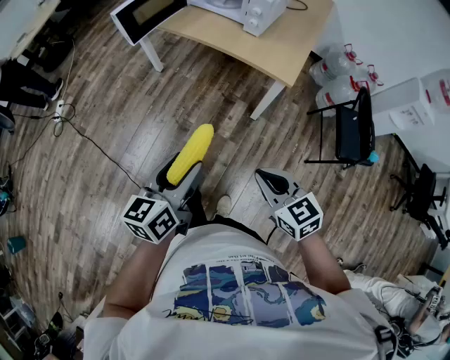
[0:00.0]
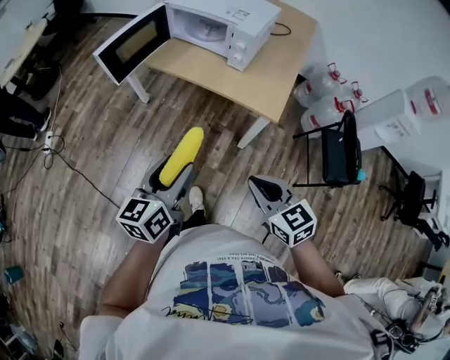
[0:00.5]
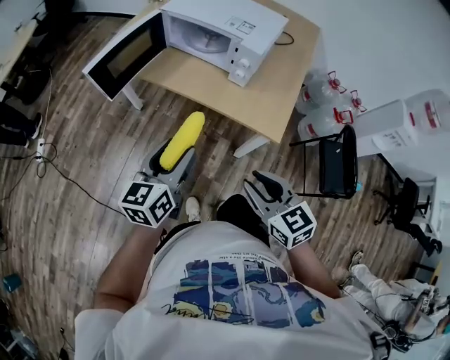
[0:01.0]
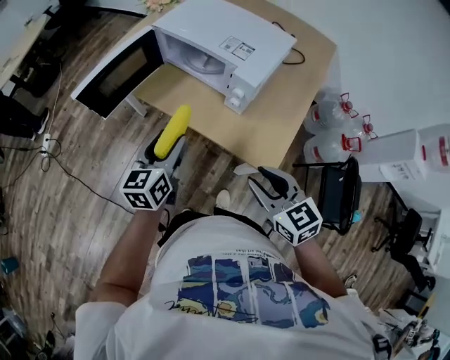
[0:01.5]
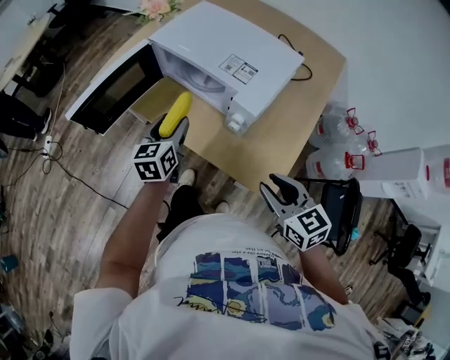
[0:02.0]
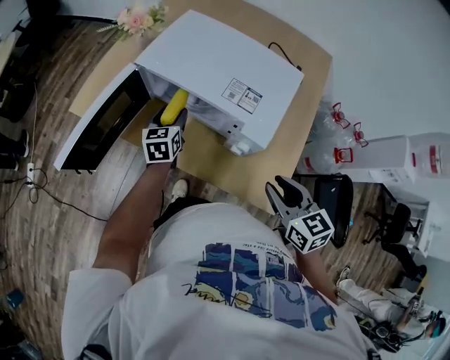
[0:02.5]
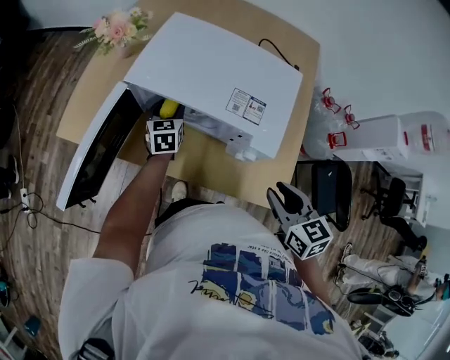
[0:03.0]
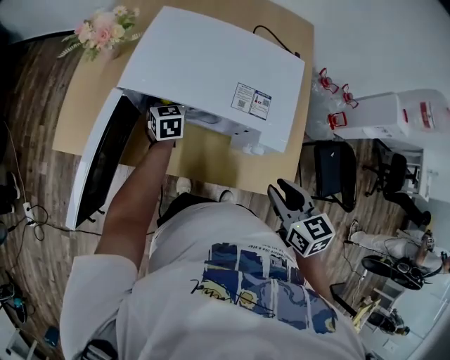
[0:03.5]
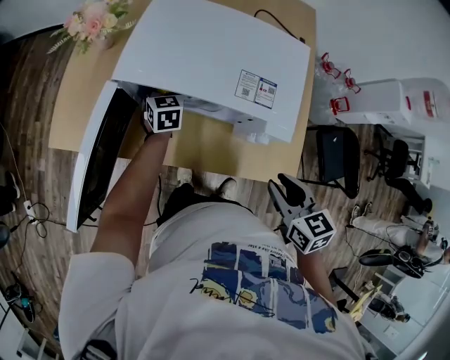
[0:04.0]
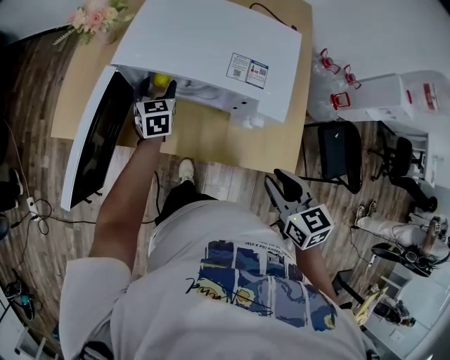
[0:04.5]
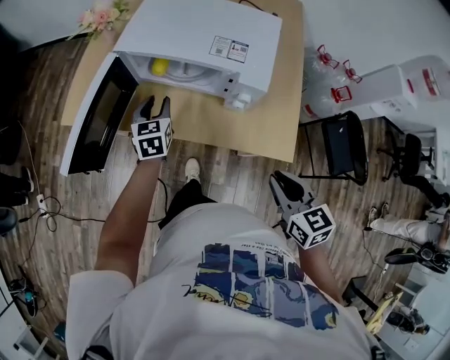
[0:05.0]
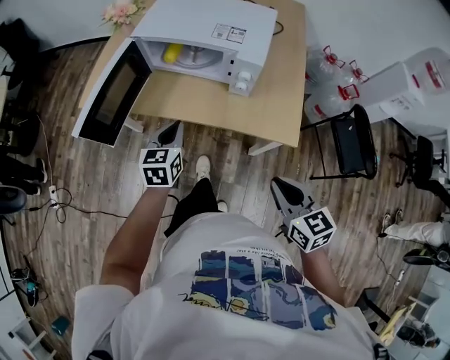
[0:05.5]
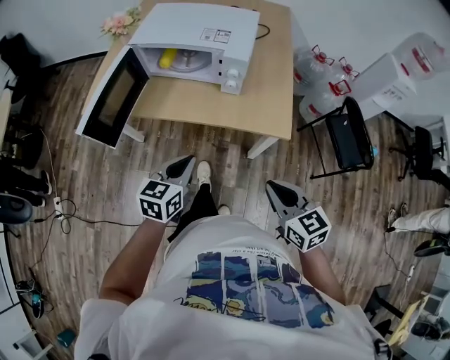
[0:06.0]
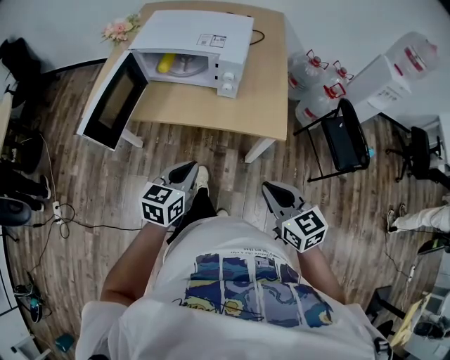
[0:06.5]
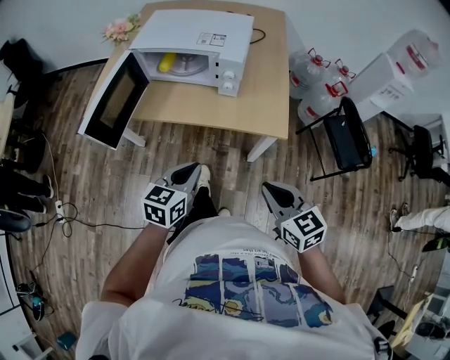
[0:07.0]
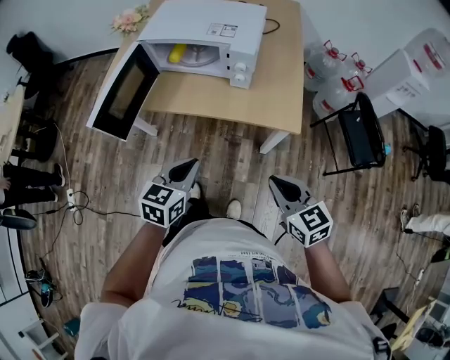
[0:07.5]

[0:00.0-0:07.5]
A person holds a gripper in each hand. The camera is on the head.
0:00.0 to 0:02.0: Both grippers are carried forward, about 50 cm. The left gripper rotates some 20 degrees. The right gripper opens its fingers.
0:02.0 to 0:04.0: The right gripper goes roughly 10 cm to the left and forward, and changes its angle by some 30 degrees. The left gripper shifts some 30 cm forward and downward, and changes its angle by roughly 30 degrees.
0:04.0 to 0:05.5: The left gripper moves backward, some 35 cm, and closes its fingers. The right gripper shifts roughly 25 cm backward.
0:05.5 to 0:07.5: The right gripper travels backward by roughly 5 cm, while the left gripper is displaced backward by roughly 15 cm.

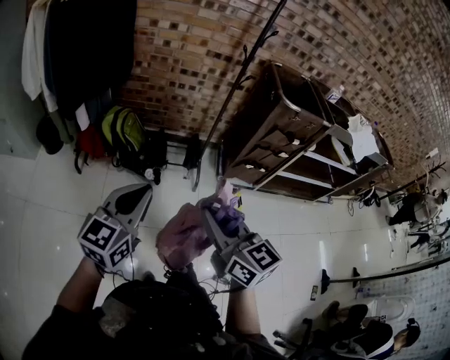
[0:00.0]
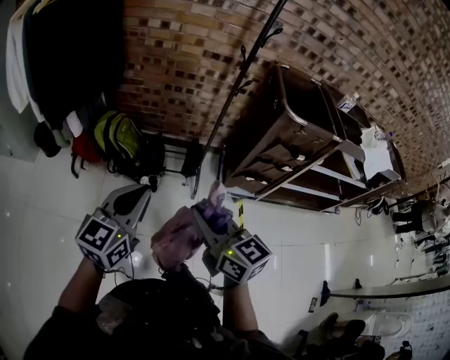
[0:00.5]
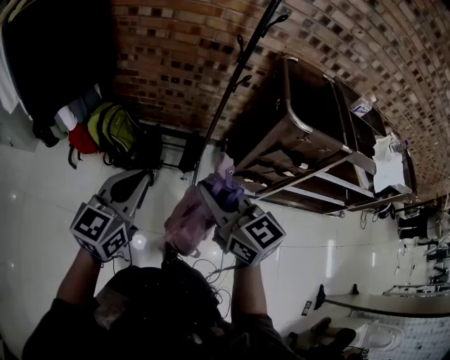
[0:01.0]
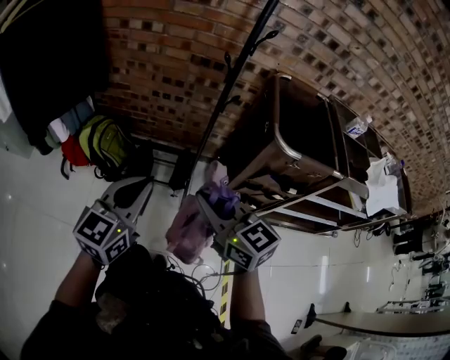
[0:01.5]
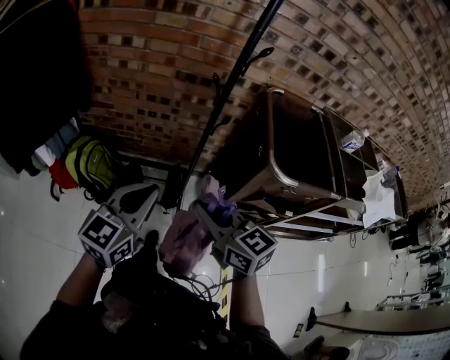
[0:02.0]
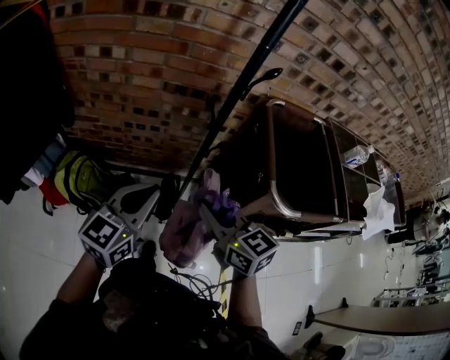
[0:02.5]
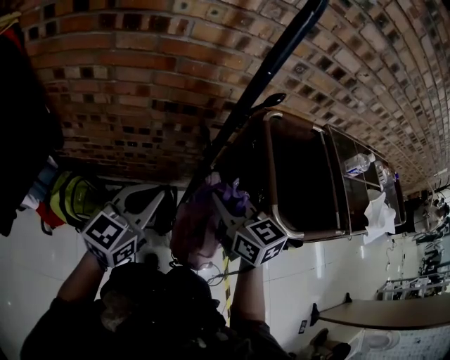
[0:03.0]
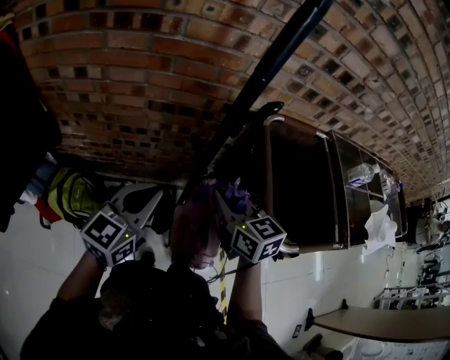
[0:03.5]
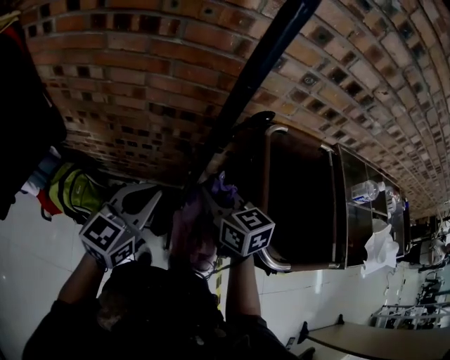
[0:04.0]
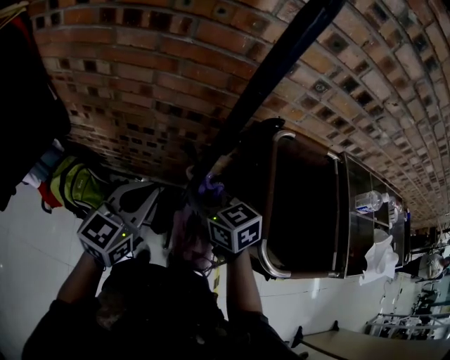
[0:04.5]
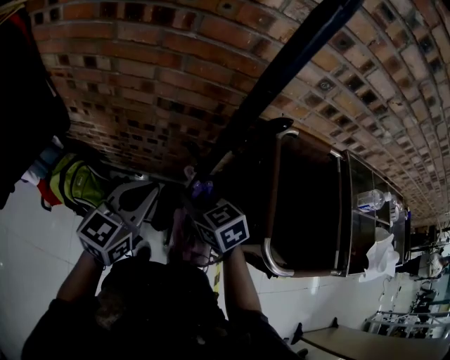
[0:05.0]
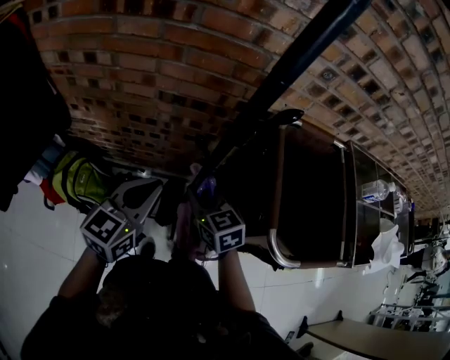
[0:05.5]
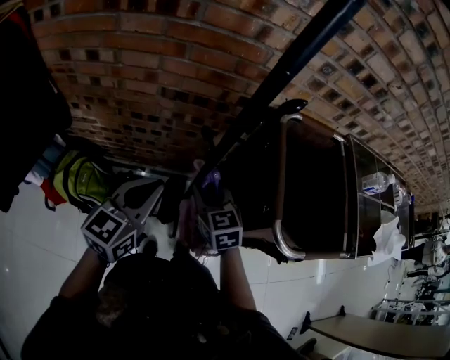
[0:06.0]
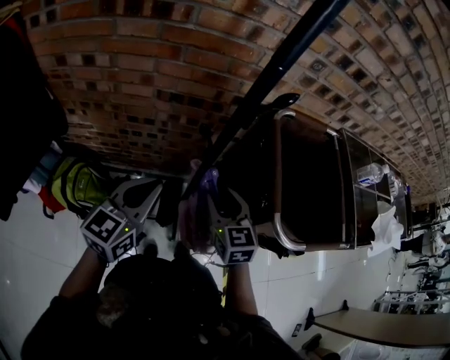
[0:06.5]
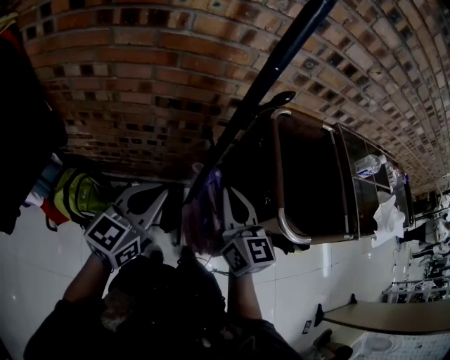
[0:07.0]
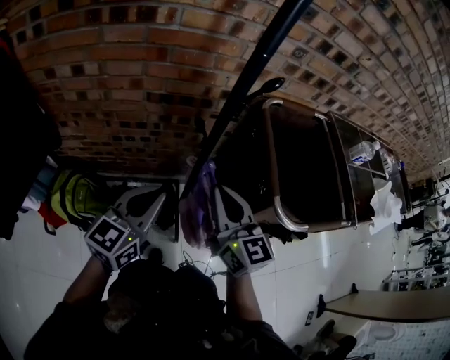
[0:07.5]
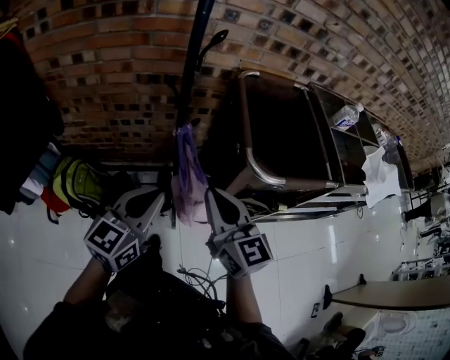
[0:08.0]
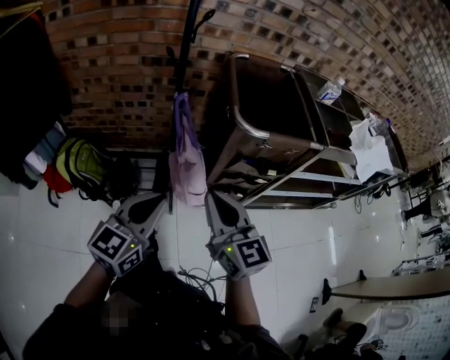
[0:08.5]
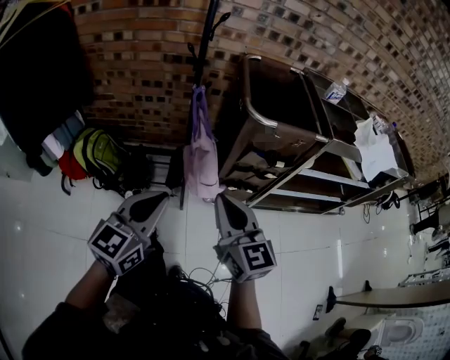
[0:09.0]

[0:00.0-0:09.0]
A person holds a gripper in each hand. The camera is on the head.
0:00.0 to 0:02.0: Both grippers are carried forward and to the right, about 50 cm.
0:02.0 to 0:04.5: The two grippers go roughly 30 cm forward.
0:04.5 to 0:07.0: The right gripper travels backward and upward by some 10 cm, changes its angle by approximately 40 degrees, and opens, then closes again. Meanwhile the left gripper shifts by roughly 5 cm.
0:07.0 to 0:09.0: The two grippers travel together, backward, some 40 cm.

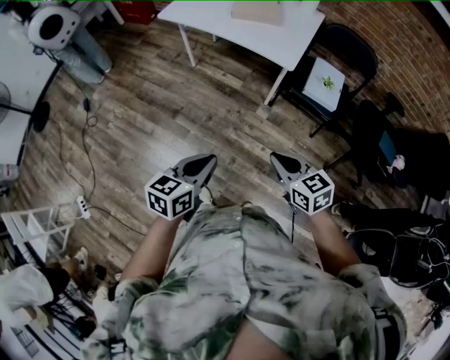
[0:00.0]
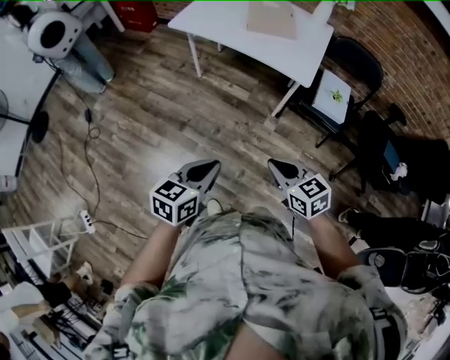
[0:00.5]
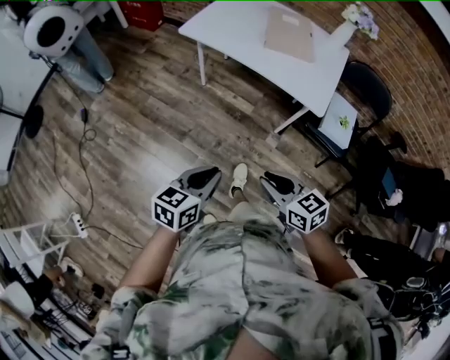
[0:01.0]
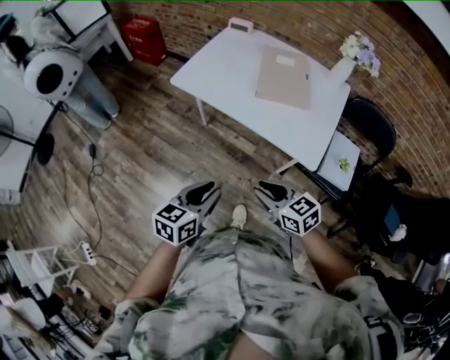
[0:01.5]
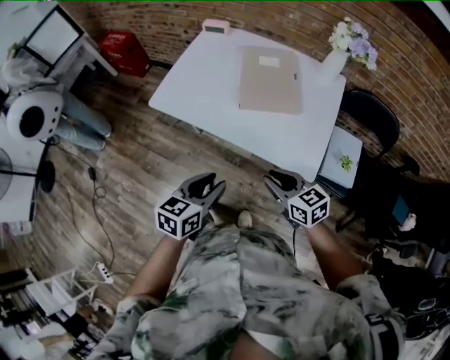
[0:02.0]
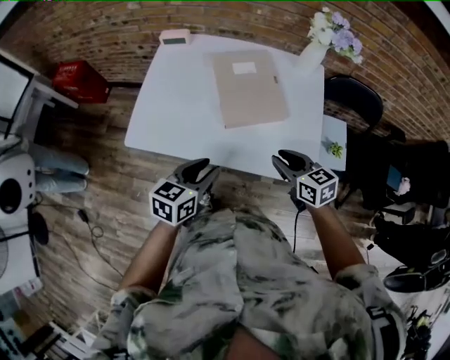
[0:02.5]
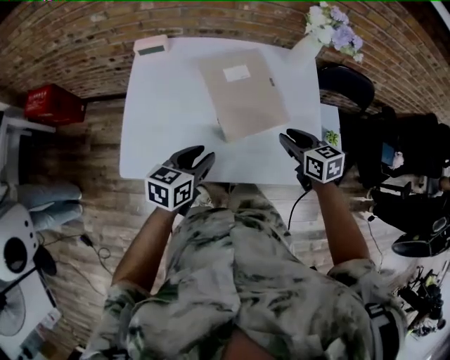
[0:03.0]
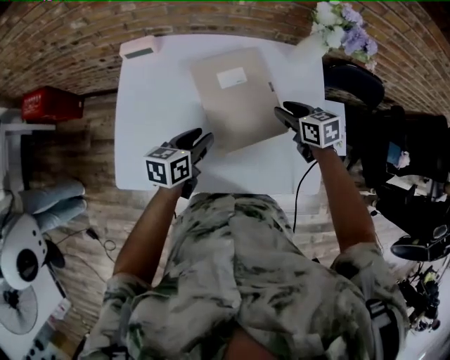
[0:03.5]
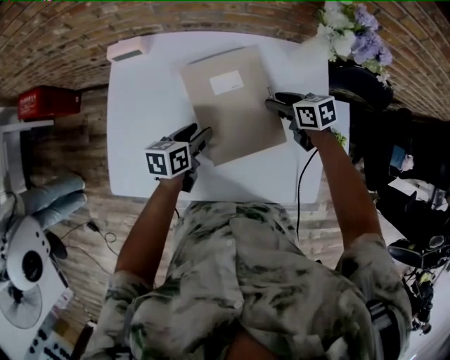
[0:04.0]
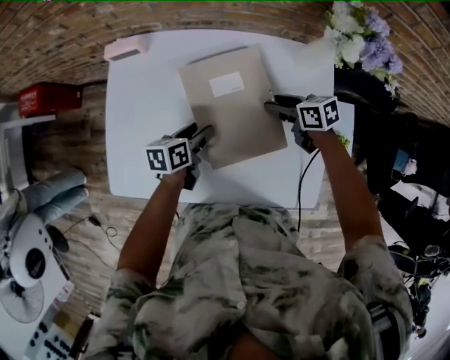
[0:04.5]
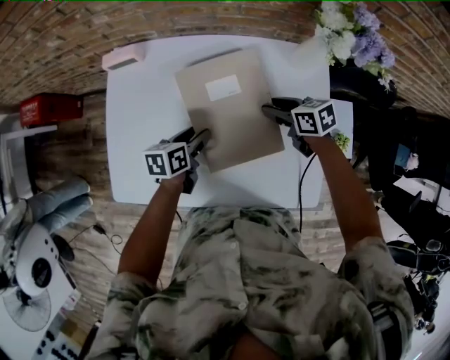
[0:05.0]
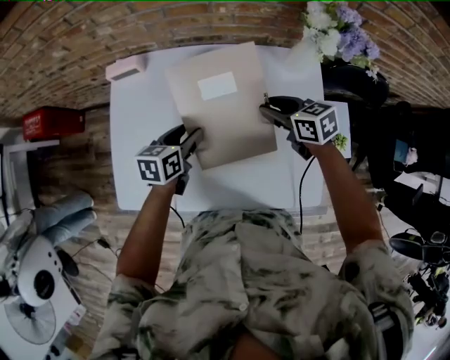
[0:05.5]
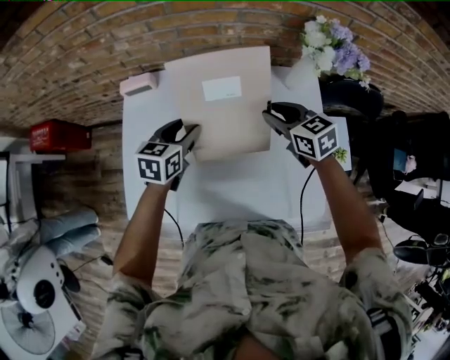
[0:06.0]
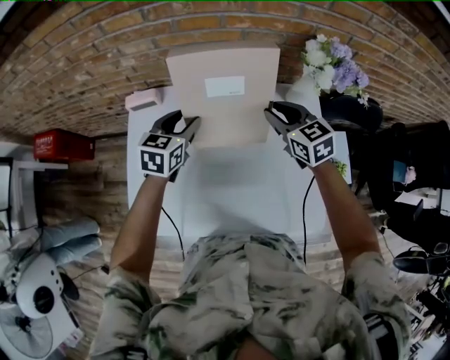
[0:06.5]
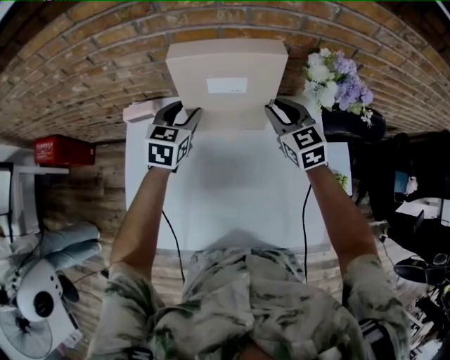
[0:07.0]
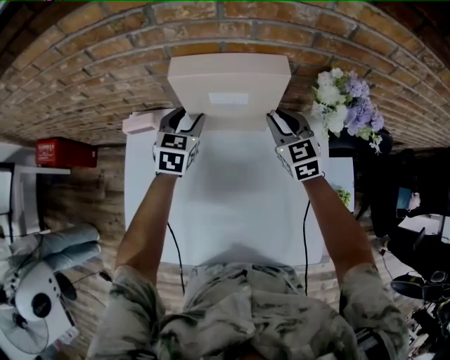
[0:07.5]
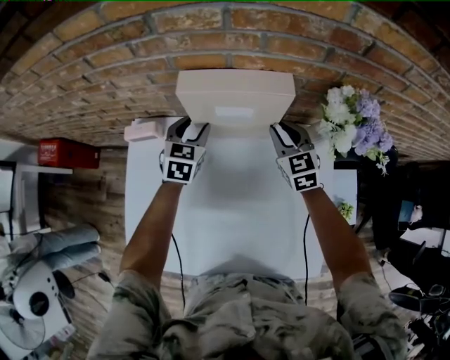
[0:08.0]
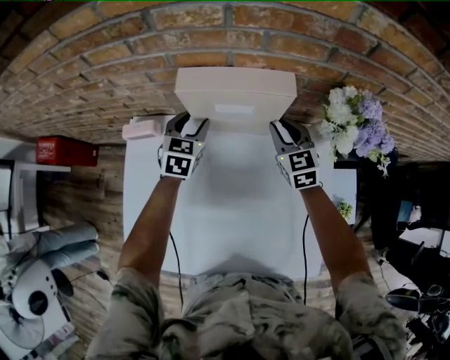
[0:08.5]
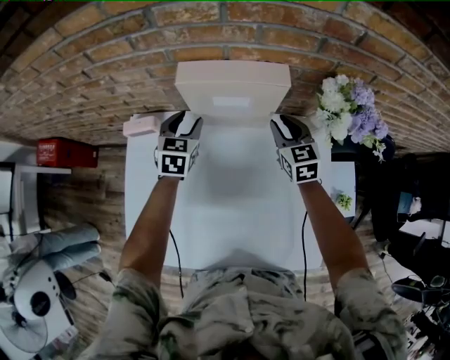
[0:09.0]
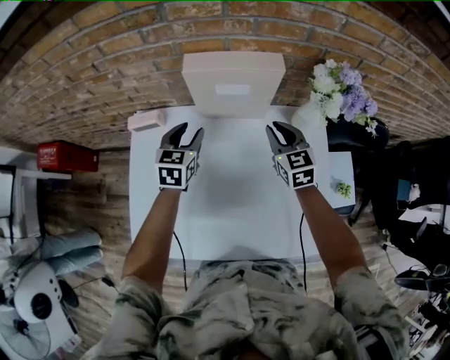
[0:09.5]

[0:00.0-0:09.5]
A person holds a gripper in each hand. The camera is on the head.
0:00.0 to 0:02.0: The pair of grippers is taken forward, approximately 50 cm. The right gripper opens up, while the left gripper opens.
0:02.0 to 0:04.0: The pair of grippers is taken approximately 50 cm. The left gripper swivels about 30 degrees; the right gripper swivels some 30 degrees, and opens its fingers.
0:04.0 to 0:05.5: The right gripper shifts some 5 cm upward. Meanwhile the left gripper ends up approximately 5 cm from where it was.
0:05.5 to 0:07.5: Both grippers move forward, about 20 cm. The right gripper swivels approximately 40 degrees; the left gripper turns by some 40 degrees.
0:07.5 to 0:09.5: Both grippers travel together backward, about 5 cm.

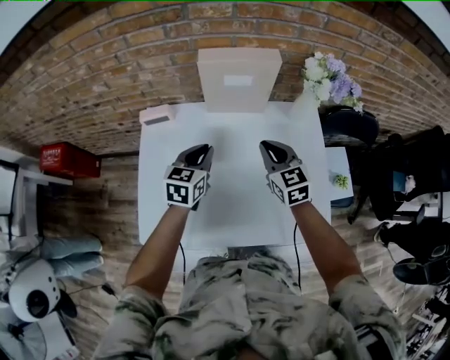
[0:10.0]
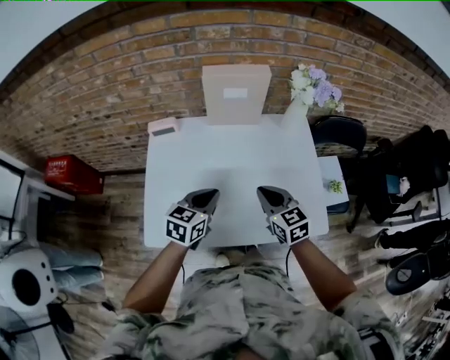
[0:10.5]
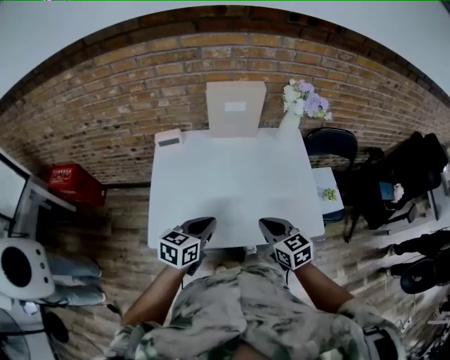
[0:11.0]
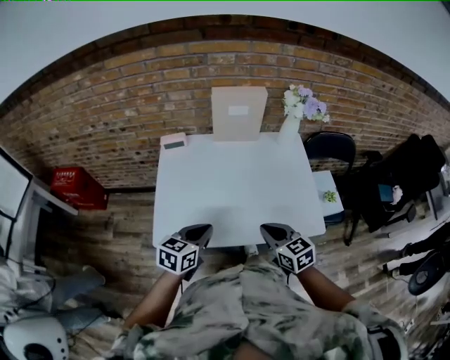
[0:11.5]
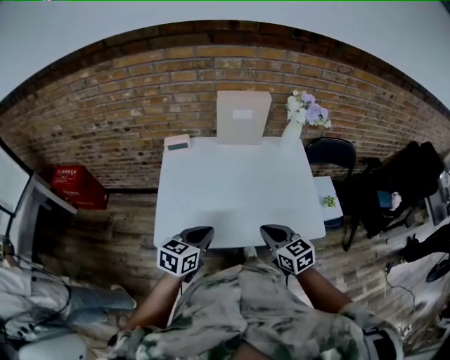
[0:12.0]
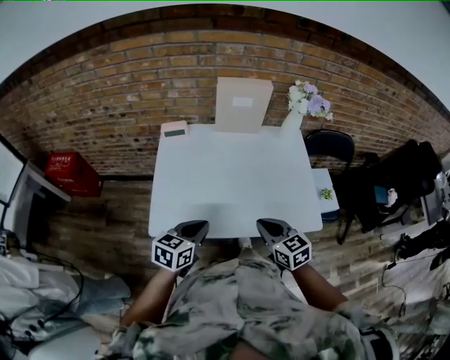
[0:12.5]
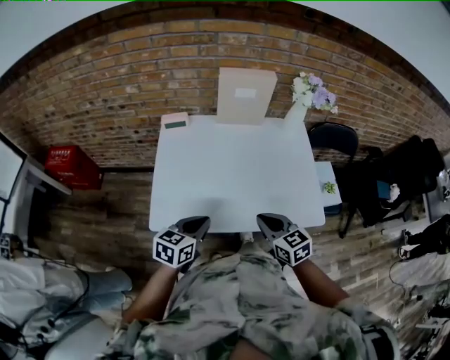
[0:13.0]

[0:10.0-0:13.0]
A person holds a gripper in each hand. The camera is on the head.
0:10.0 to 0:11.5: The grippers both shift backward by approximately 30 cm.
0:11.5 to 0:13.0: There are only small adjustments of the grippers.
